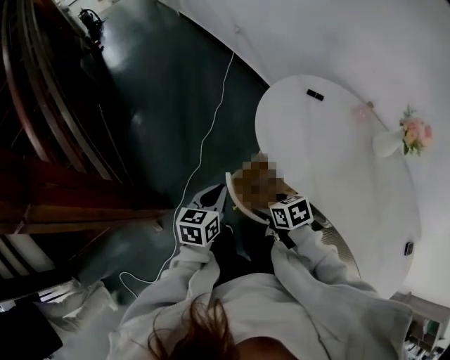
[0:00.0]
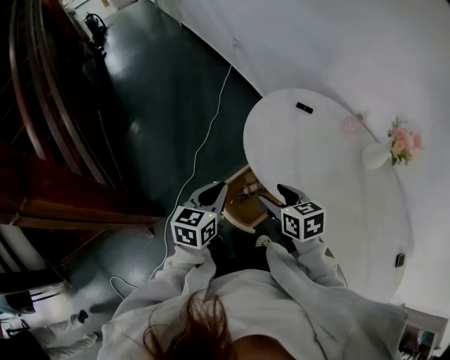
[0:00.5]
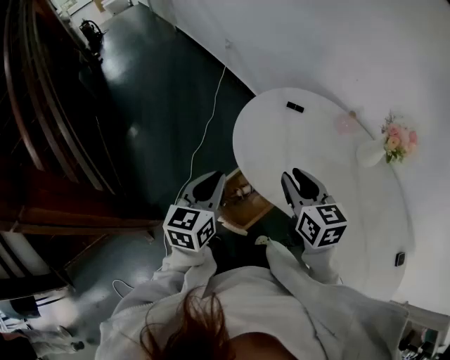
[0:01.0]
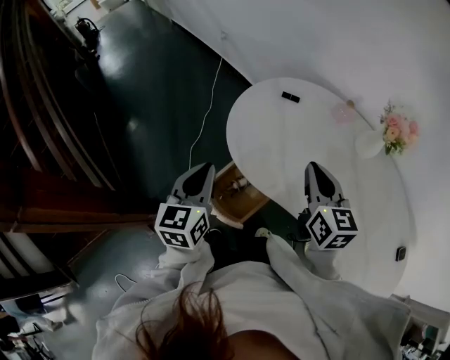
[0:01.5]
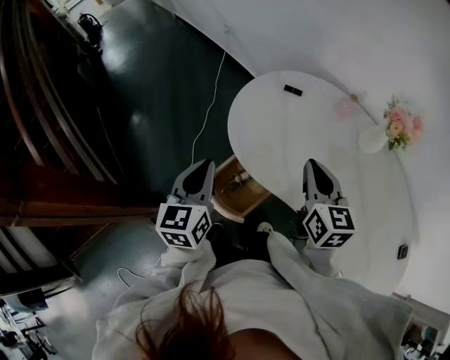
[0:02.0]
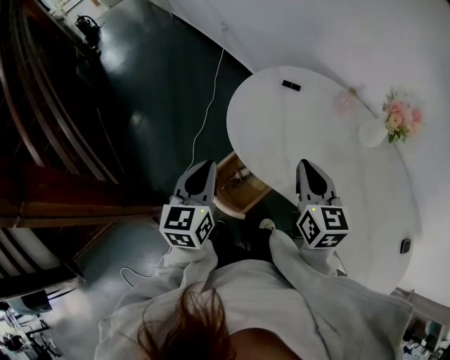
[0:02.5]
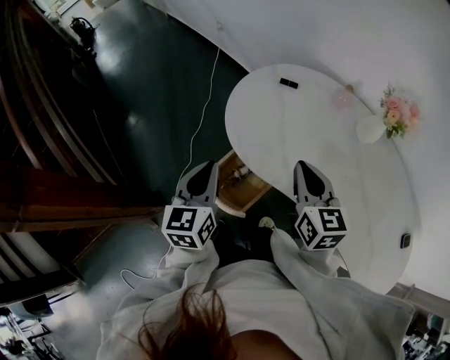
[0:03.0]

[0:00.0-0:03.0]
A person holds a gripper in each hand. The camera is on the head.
0:00.0 to 0:01.5: The right gripper moves upward and to the right, approximately 30 cm, points its fingers some 40 degrees further upward, and closes up; the left gripper shifts roughly 15 cm upward and to the right.
0:01.5 to 0:03.0: The grippers make only small movements.

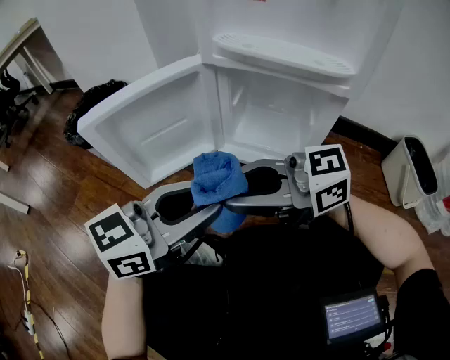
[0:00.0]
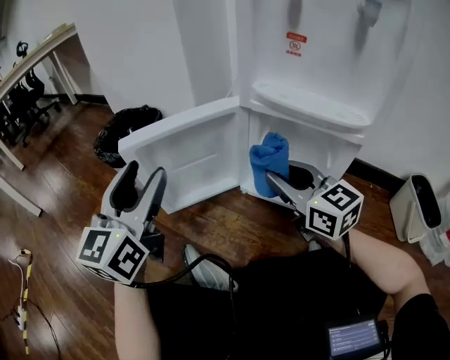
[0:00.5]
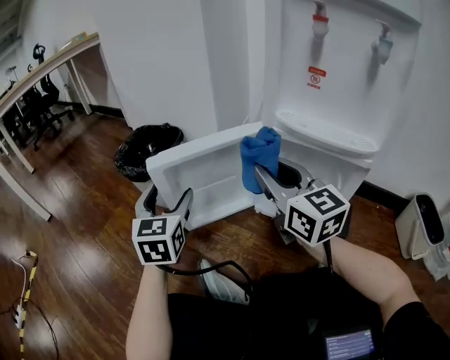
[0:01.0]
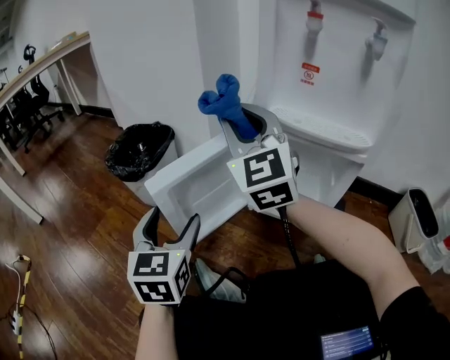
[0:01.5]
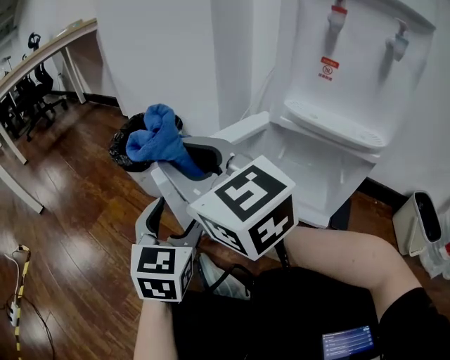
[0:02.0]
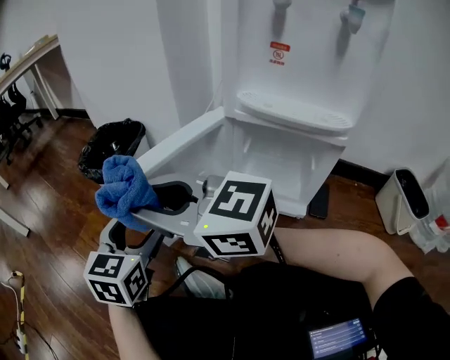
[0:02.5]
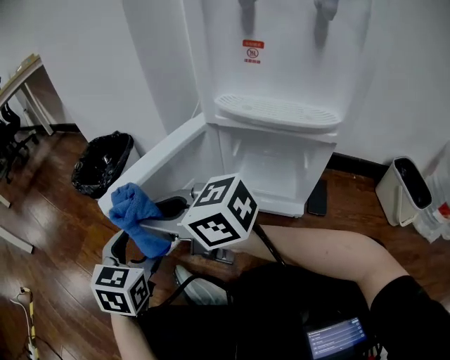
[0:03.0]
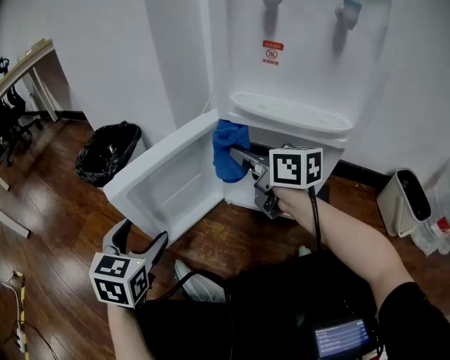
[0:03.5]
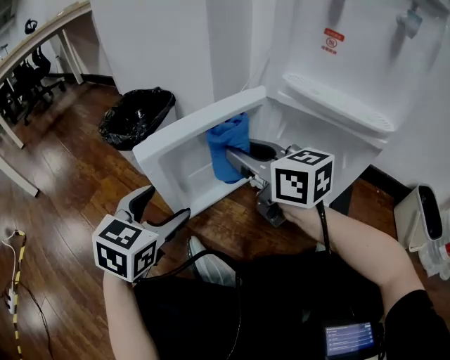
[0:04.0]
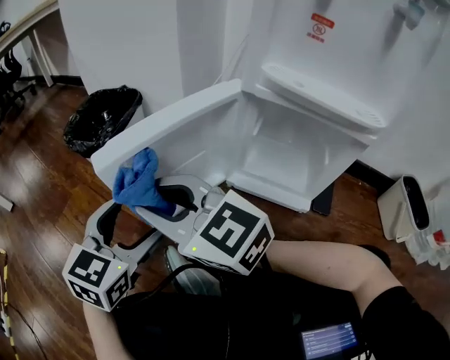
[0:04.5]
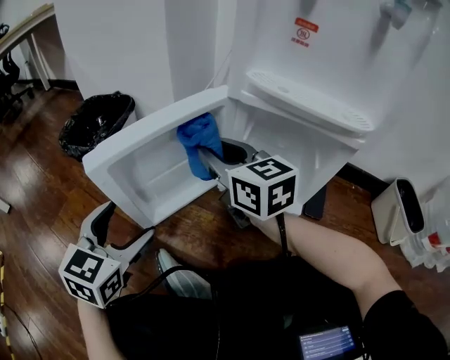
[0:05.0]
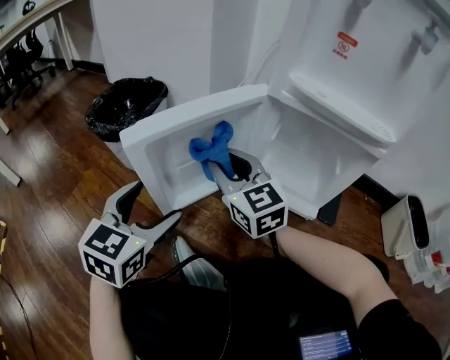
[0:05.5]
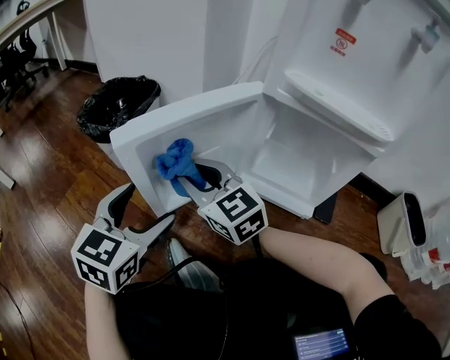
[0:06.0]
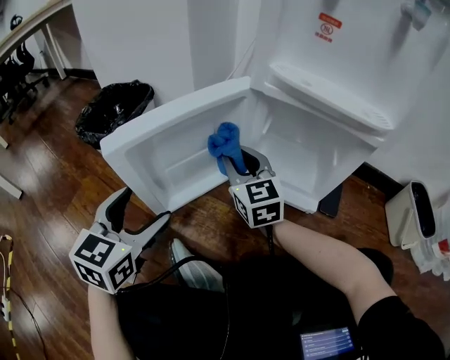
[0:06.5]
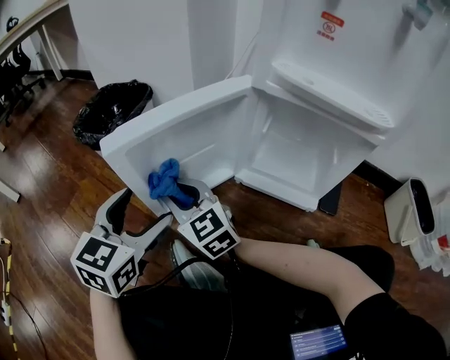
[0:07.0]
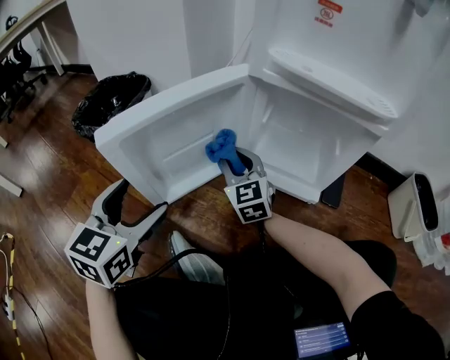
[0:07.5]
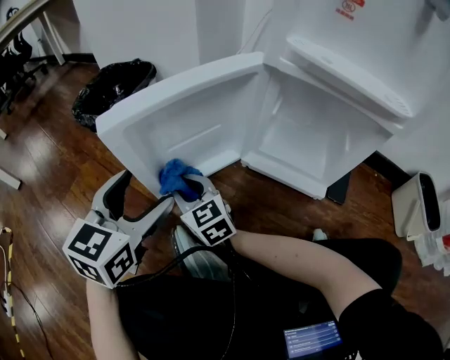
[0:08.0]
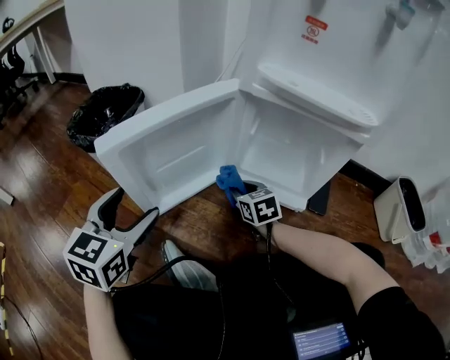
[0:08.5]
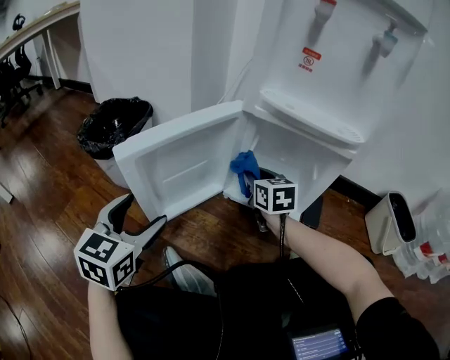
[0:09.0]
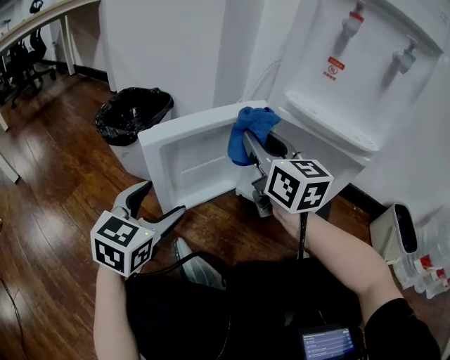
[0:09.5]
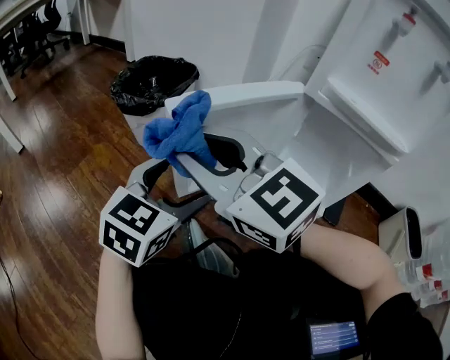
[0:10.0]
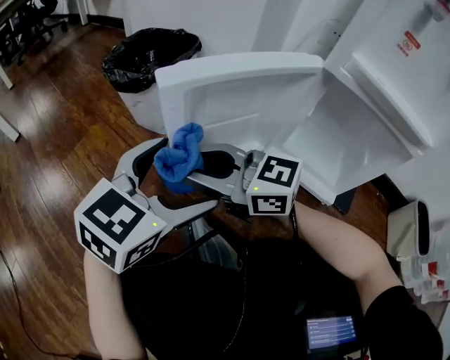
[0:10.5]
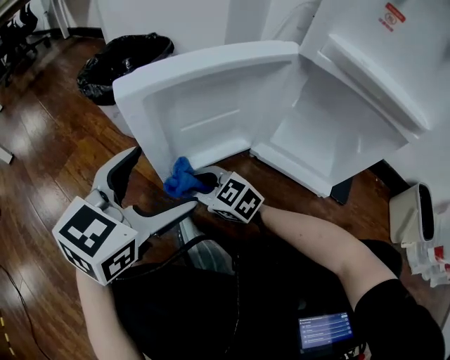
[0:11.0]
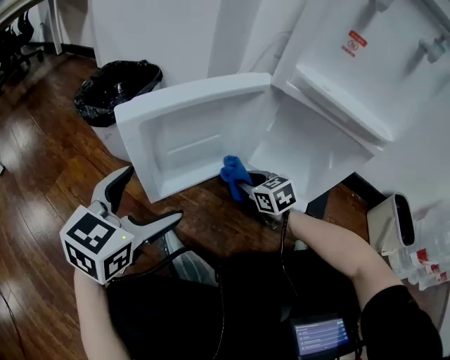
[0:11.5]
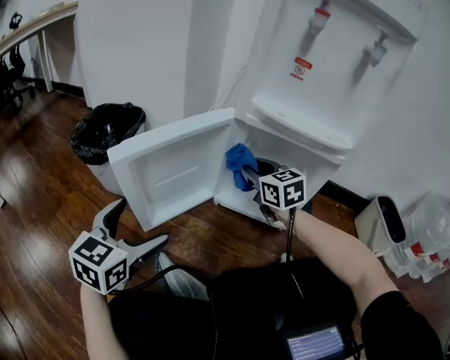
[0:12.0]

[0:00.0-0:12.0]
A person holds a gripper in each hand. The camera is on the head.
0:00.0 to 0:02.0: The right gripper moves about 25 cm, and turns by some 40 degrees. The left gripper reaches approximately 10 cm upward, then returns, turns by about 60 degrees, and opens.
0:02.0 to 0:04.0: The right gripper moves to the right and downward, some 20 cm, and changes its angle by some 20 degrees.
0:04.0 to 0:06.0: The right gripper moves left and right over some 15 cm, changing direction 2 times, and turns by approximately 20 degrees.
0:06.0 to 0:08.0: The right gripper goes left and right, some 15 cm each way, reversing 3 times.
0:08.0 to 0:10.0: The right gripper travels upward by some 25 cm, and turns by some 20 degrees.
0:10.0 to 0:12.0: The right gripper moves approximately 35 cm, and rotates some 40 degrees.

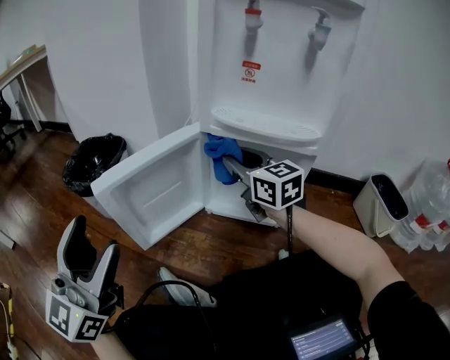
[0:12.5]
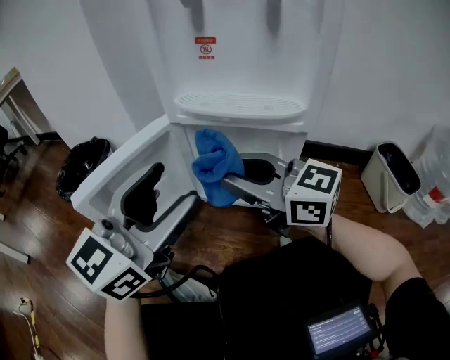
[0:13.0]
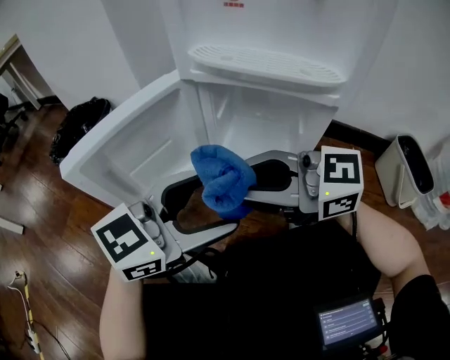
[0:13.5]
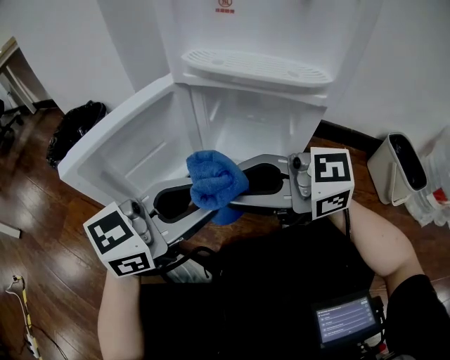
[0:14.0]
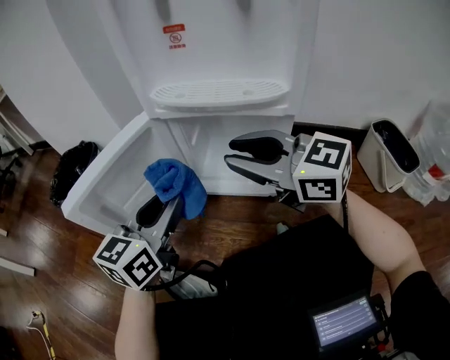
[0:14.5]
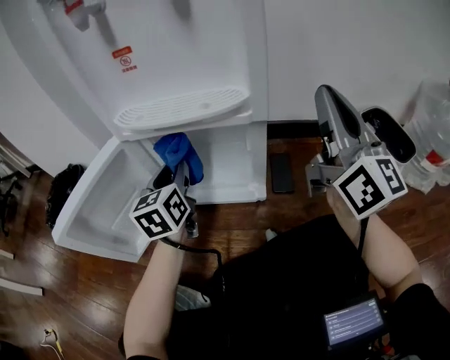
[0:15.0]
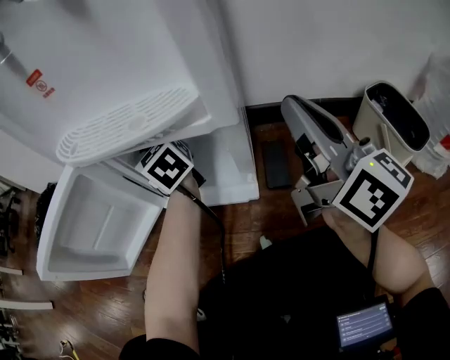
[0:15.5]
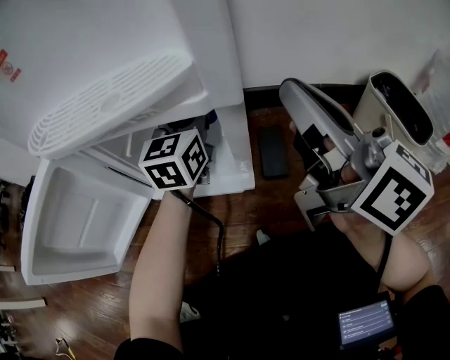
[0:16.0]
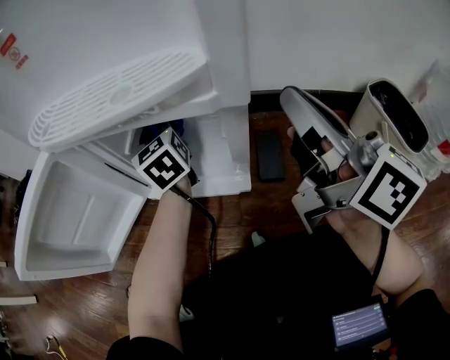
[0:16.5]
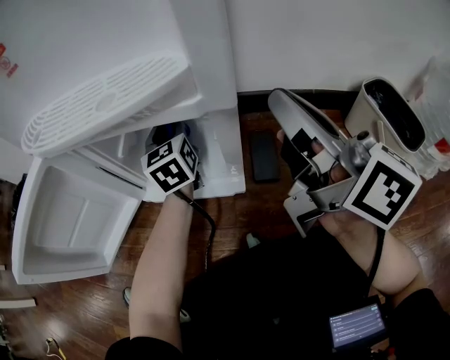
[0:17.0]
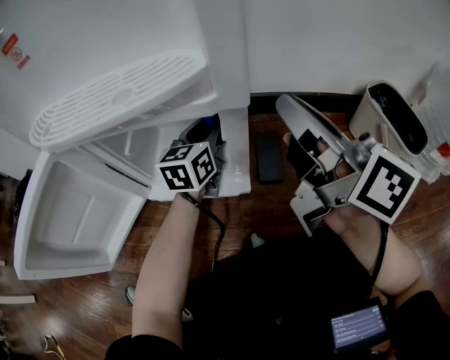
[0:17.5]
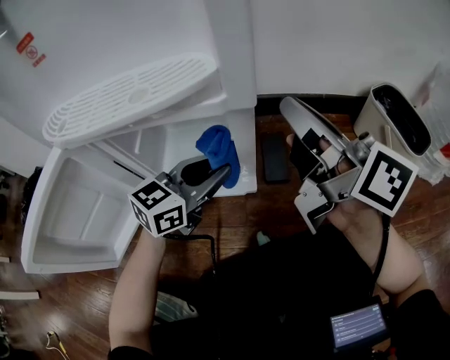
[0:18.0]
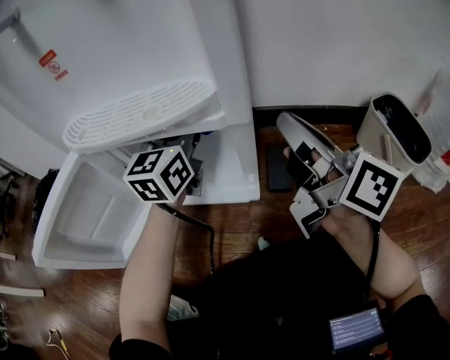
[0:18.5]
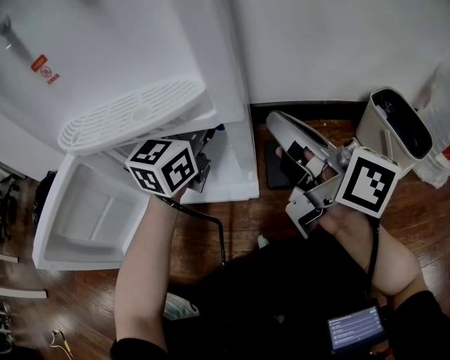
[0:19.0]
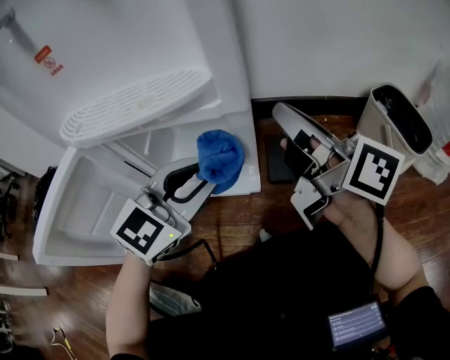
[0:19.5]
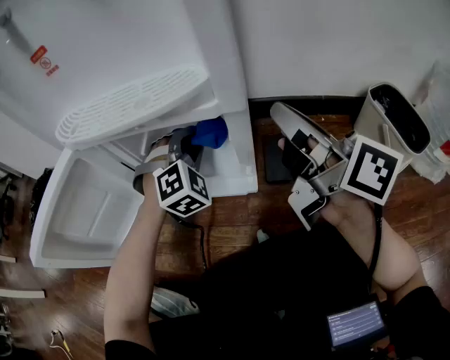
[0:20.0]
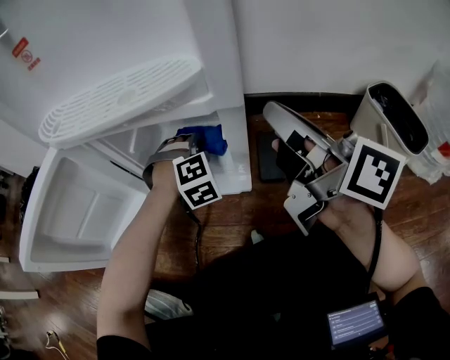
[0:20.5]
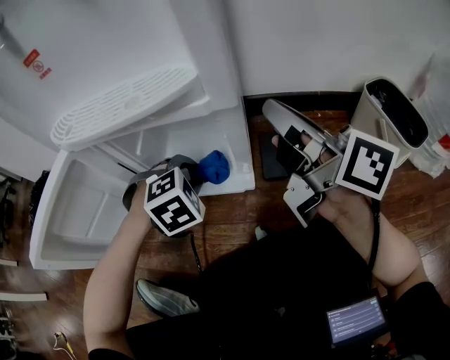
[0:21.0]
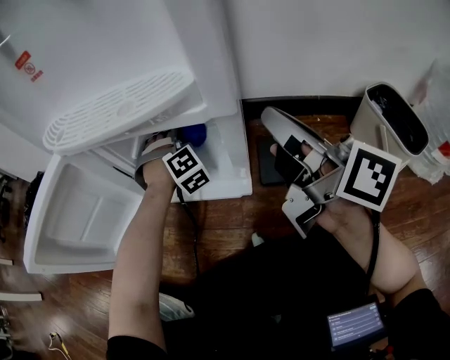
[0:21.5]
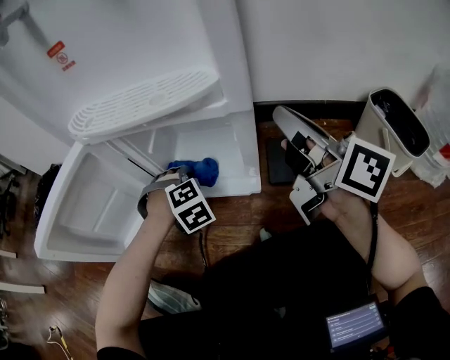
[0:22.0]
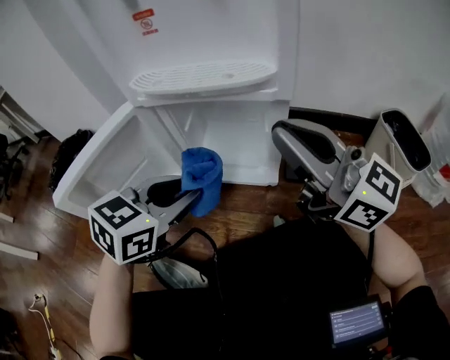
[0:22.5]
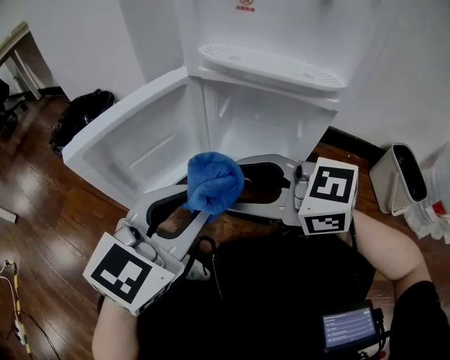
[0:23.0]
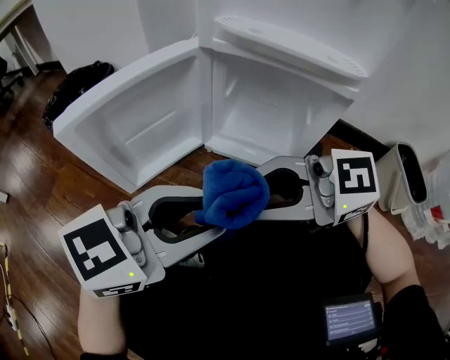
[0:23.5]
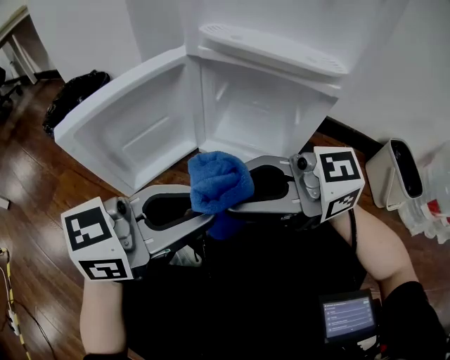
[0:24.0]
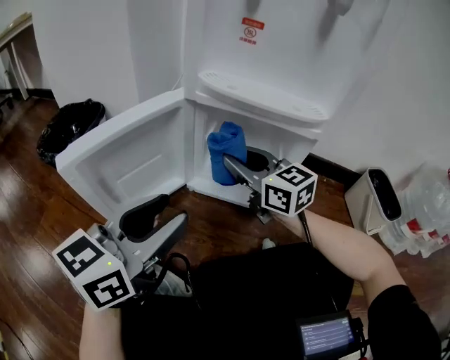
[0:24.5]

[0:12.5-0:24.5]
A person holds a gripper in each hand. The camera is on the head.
0:12.5 to 0:14.5: The right gripper shifts by about 10 cm. The left gripper ends up about 25 cm from where it was, changes its angle by some 30 degrees, and closes its fingers.
0:14.5 to 0:16.5: The right gripper is displaced to the right by approximately 20 cm, changes its angle by roughly 50 degrees, and closes. Meanwhile the left gripper moves forward and backward over roughly 25 cm, changing direction 2 times, and rotates roughly 40 degrees.
0:16.5 to 0:18.5: The left gripper ends up approximately 15 cm from where it was, and rotates approximately 40 degrees.
0:18.5 to 0:20.5: The left gripper heads downward, covering some 20 cm, and twists about 70 degrees clockwise, seen from behind.
0:20.5 to 0:22.5: The left gripper swings forward and backward, approximately 25 cm each way, with 2 reversals, and rotates around the line of its fingers by some 60 degrees, counterclockwise from behind. Meanwhile the right gripper goes about 15 cm to the left, backward and upward, and turns by about 40 degrees.
0:22.5 to 0:24.5: The left gripper shifts by roughly 10 cm, and turns by roughly 30 degrees; the right gripper ends up some 20 cm from where it was, changes its angle by some 20 degrees, and opens.
